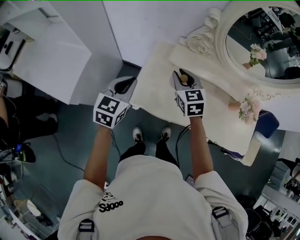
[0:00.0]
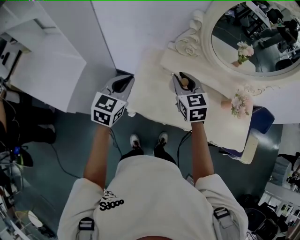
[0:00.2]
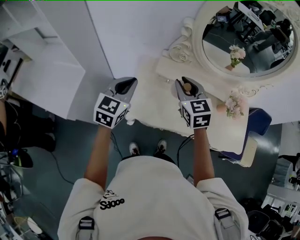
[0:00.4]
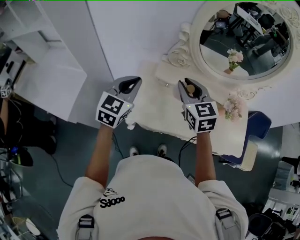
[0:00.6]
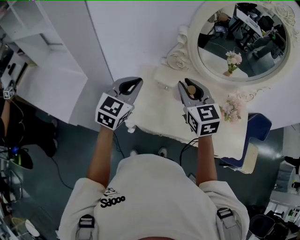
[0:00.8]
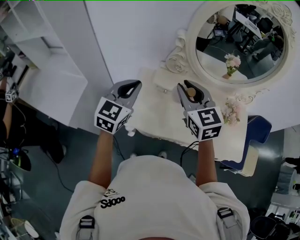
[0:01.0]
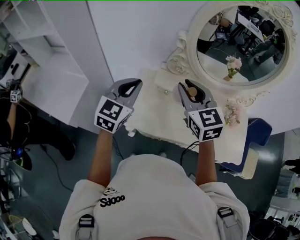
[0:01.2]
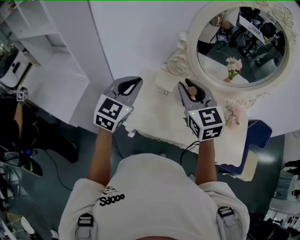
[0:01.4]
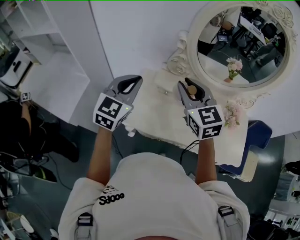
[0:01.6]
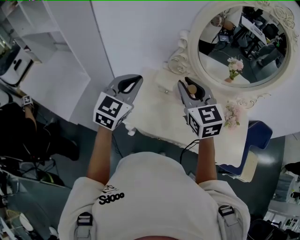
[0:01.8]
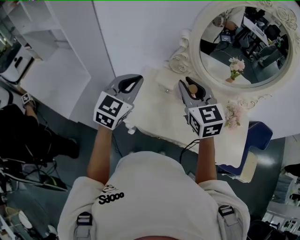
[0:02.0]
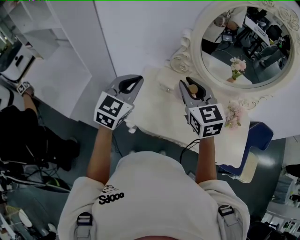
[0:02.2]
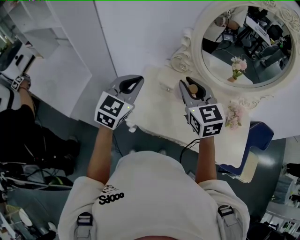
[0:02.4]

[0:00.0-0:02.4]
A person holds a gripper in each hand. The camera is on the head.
0:00.0 to 0:01.2: The right gripper is displaced upward by approximately 20 cm, while the left gripper travels upward and to the right by approximately 15 cm, and swivels approximately 20 degrees.
0:01.2 to 0:02.4: The grippers stay close to where they were, moving slightly.

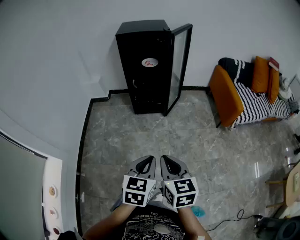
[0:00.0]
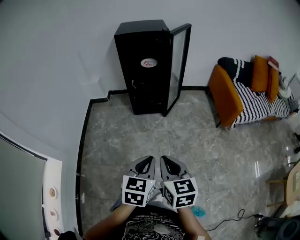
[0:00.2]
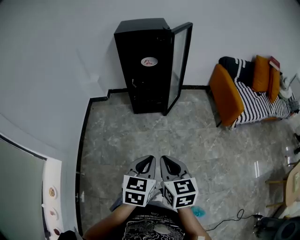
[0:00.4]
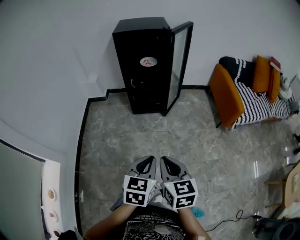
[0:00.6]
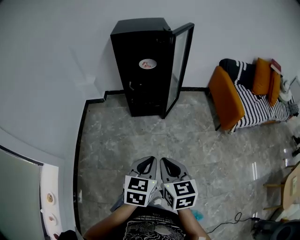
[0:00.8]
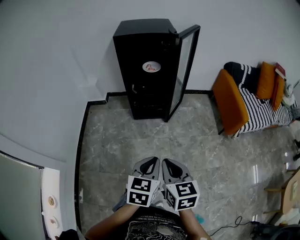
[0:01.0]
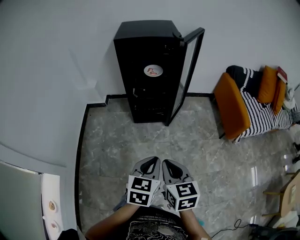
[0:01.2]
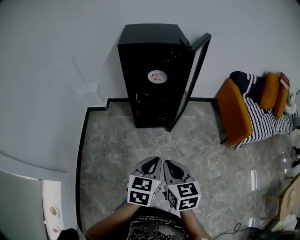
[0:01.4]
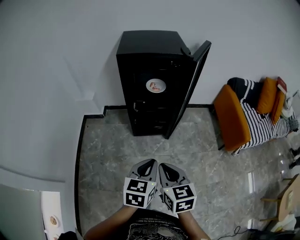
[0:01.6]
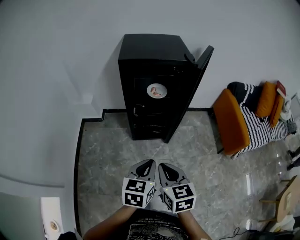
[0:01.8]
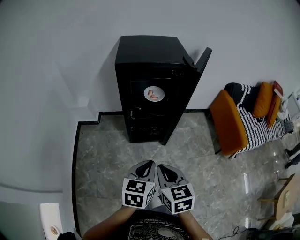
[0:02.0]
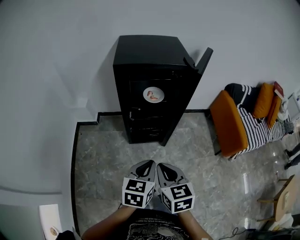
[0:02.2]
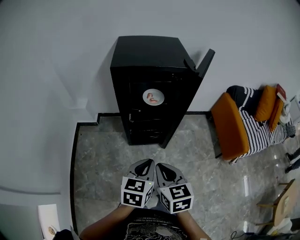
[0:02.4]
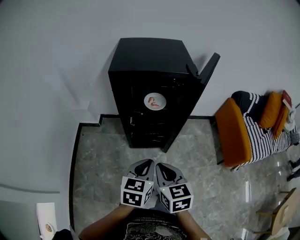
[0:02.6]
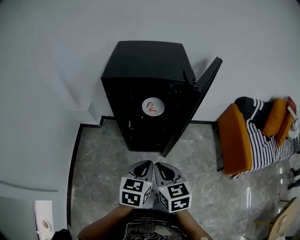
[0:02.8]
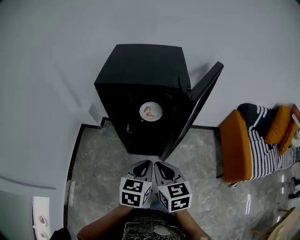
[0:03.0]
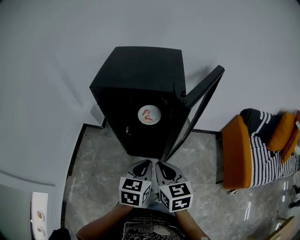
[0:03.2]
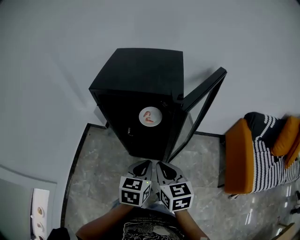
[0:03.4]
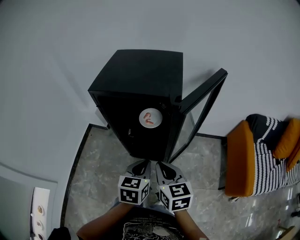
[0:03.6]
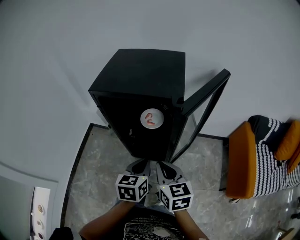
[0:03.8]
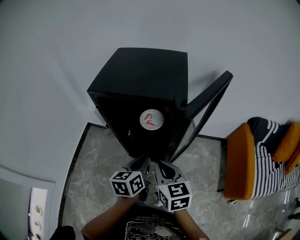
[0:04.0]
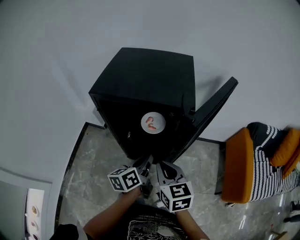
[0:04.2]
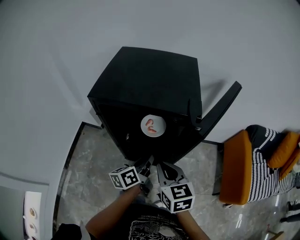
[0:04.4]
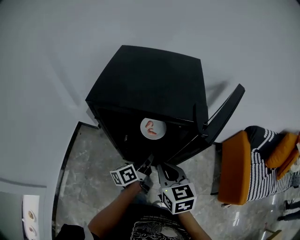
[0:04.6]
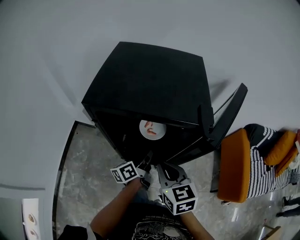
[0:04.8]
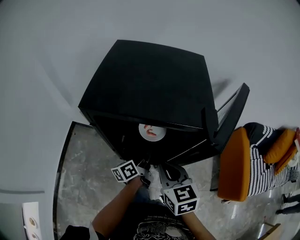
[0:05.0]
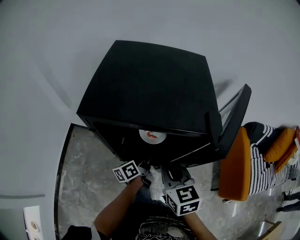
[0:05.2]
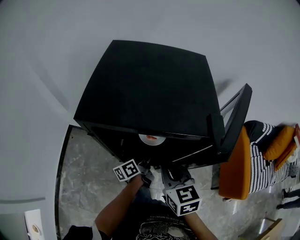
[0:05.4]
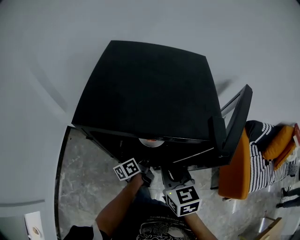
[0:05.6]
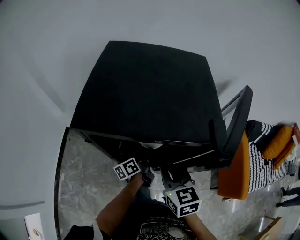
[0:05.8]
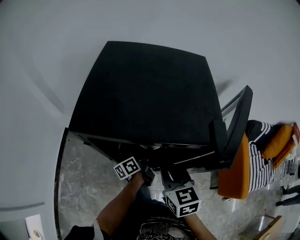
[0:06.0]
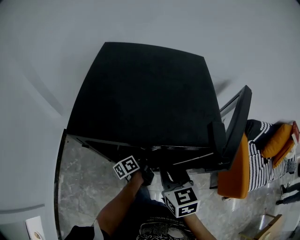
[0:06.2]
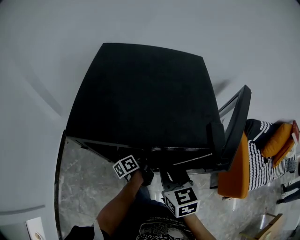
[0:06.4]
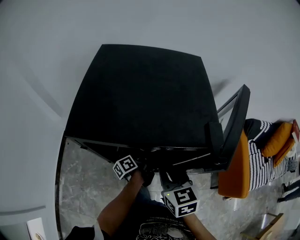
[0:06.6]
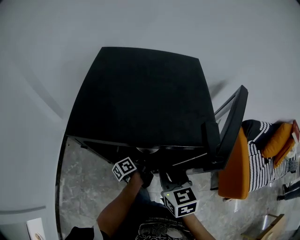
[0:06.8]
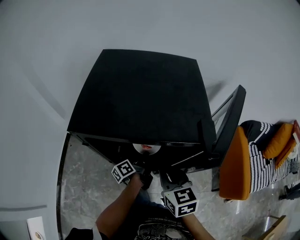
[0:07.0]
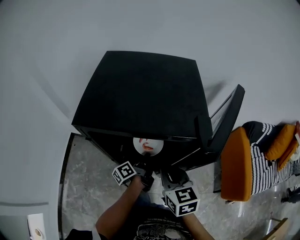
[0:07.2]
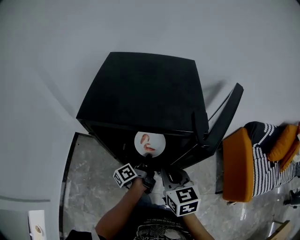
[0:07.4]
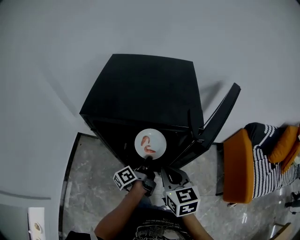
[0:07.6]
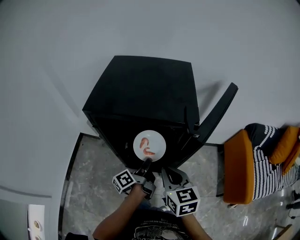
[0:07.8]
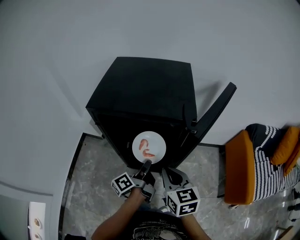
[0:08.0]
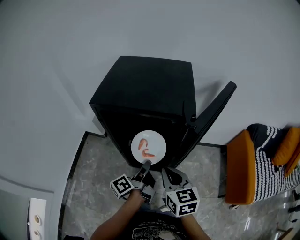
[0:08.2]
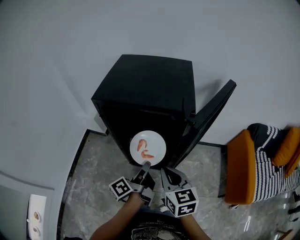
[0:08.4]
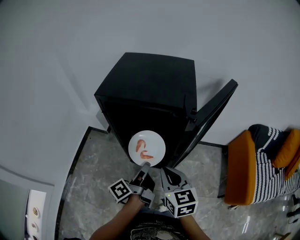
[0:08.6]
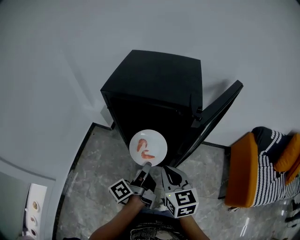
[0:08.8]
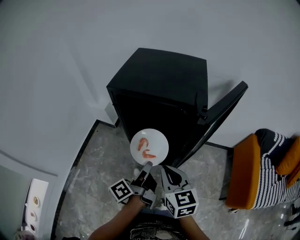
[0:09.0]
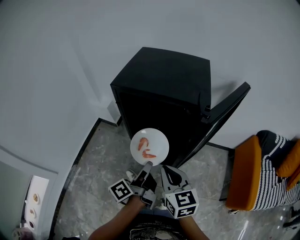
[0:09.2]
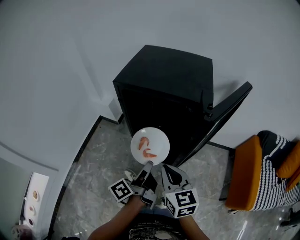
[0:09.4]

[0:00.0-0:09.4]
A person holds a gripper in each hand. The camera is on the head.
0:00.0 to 0:01.6: Both grippers move forward, approximately 30 cm.
0:01.6 to 0:03.2: The two grippers go approximately 30 cm forward and to the right.
0:03.2 to 0:04.8: The right gripper is displaced forward by some 15 cm. The left gripper moves forward and downward, about 25 cm, and rolls counterclockwise, seen from behind, by approximately 50 degrees.
0:04.8 to 0:06.2: The left gripper travels downward and forward by roughly 15 cm, and opens; the right gripper travels forward by roughly 5 cm.
0:06.2 to 0:07.8: The right gripper goes roughly 10 cm backward. The left gripper shifts some 20 cm backward and upward, and closes up.
0:07.8 to 0:09.4: The right gripper moves backward, some 10 cm, while the left gripper travels backward and upward by approximately 15 cm.

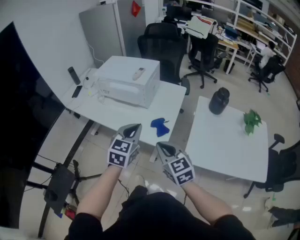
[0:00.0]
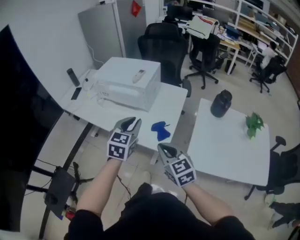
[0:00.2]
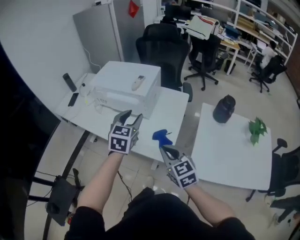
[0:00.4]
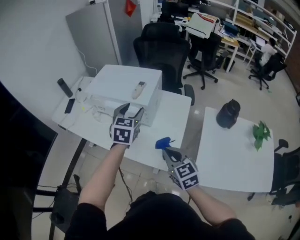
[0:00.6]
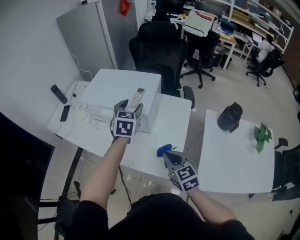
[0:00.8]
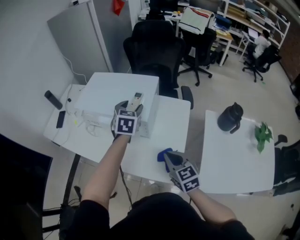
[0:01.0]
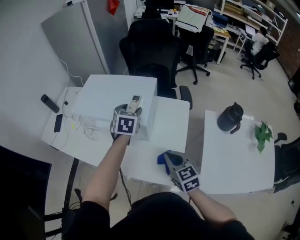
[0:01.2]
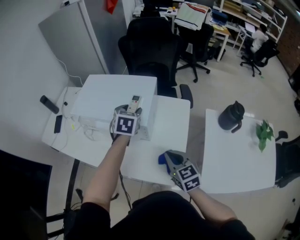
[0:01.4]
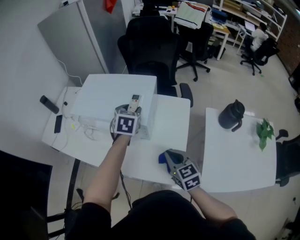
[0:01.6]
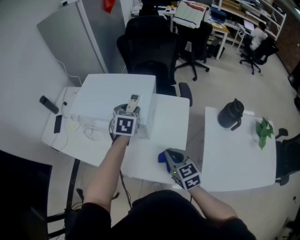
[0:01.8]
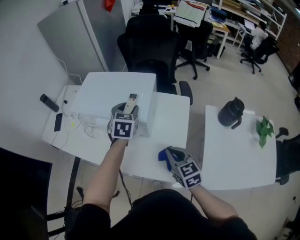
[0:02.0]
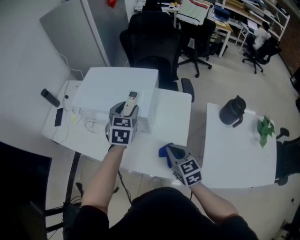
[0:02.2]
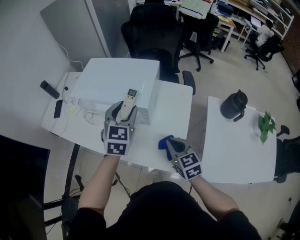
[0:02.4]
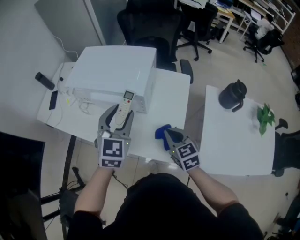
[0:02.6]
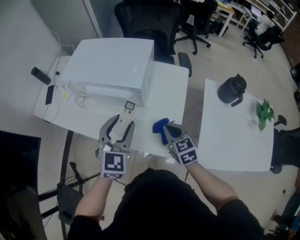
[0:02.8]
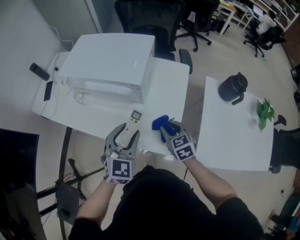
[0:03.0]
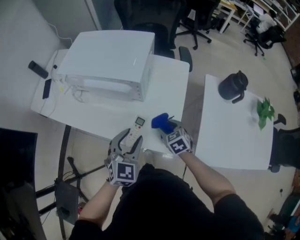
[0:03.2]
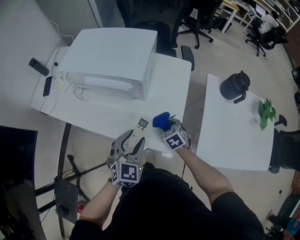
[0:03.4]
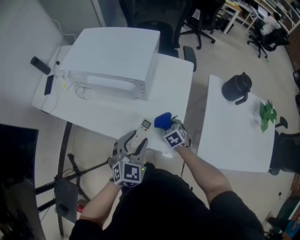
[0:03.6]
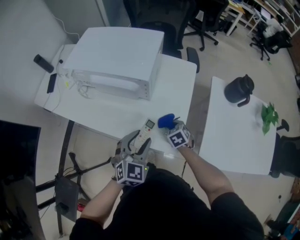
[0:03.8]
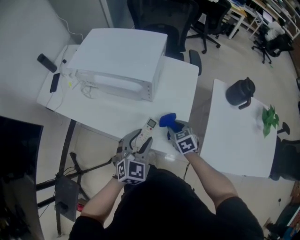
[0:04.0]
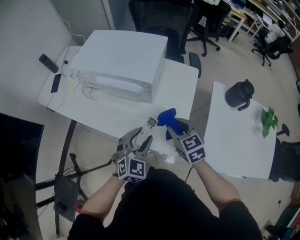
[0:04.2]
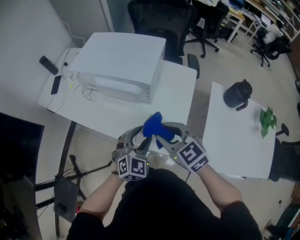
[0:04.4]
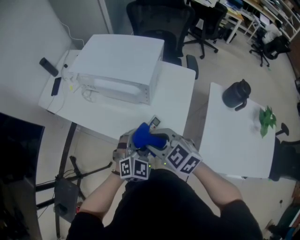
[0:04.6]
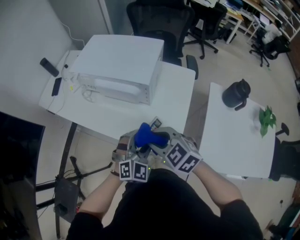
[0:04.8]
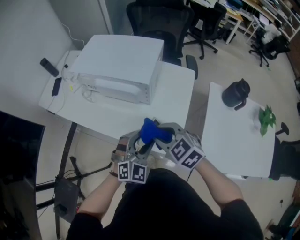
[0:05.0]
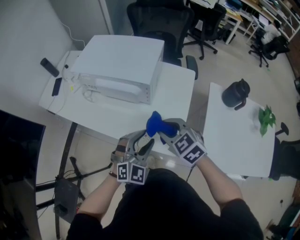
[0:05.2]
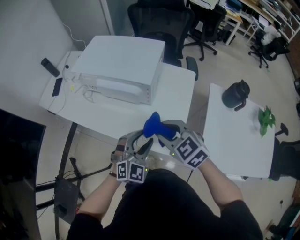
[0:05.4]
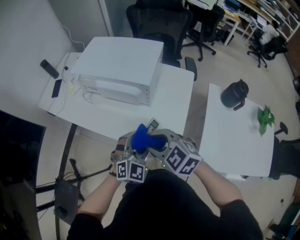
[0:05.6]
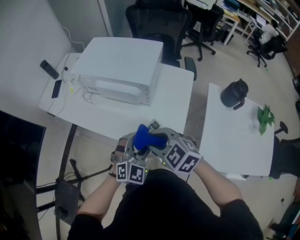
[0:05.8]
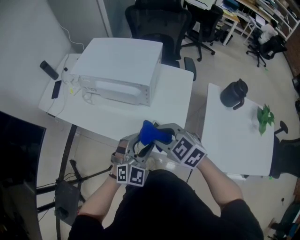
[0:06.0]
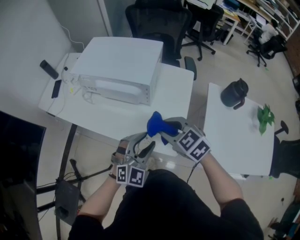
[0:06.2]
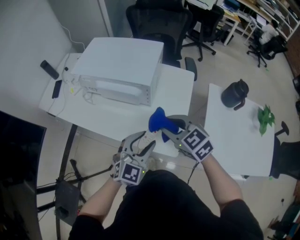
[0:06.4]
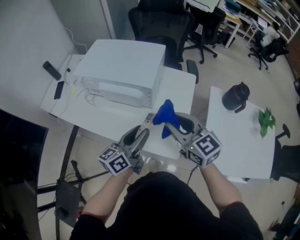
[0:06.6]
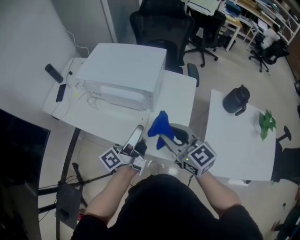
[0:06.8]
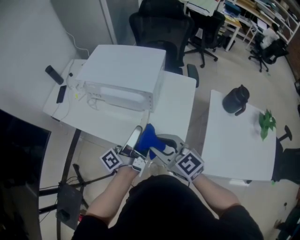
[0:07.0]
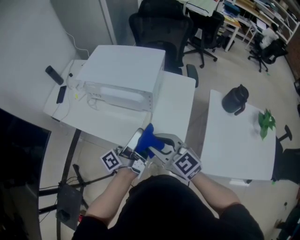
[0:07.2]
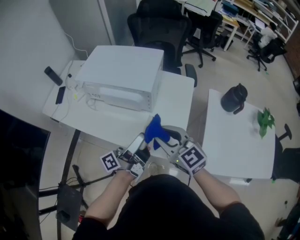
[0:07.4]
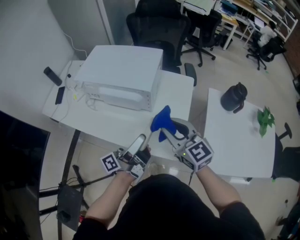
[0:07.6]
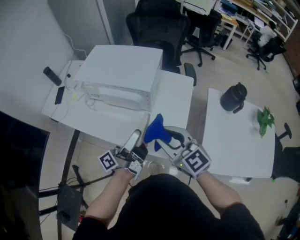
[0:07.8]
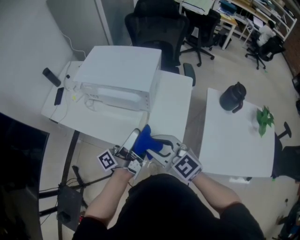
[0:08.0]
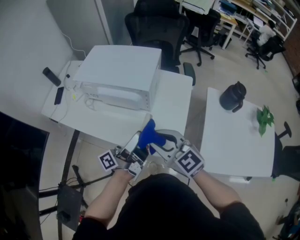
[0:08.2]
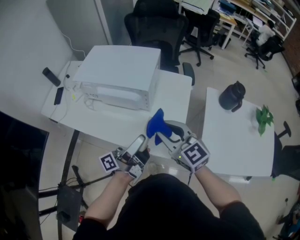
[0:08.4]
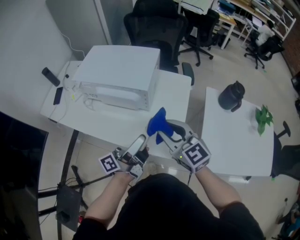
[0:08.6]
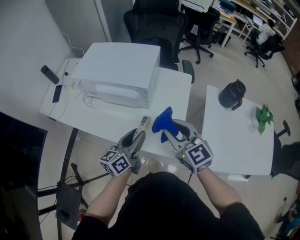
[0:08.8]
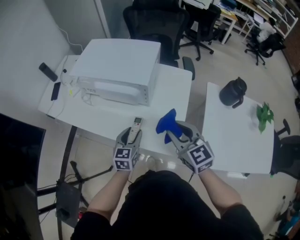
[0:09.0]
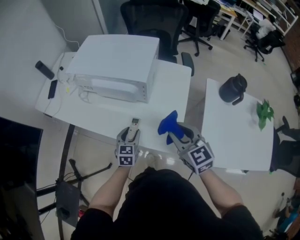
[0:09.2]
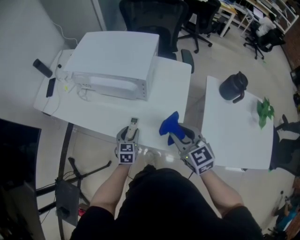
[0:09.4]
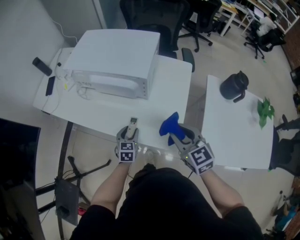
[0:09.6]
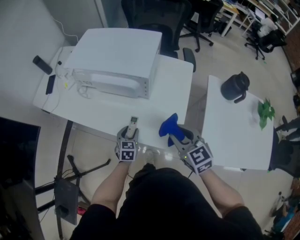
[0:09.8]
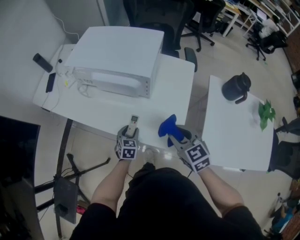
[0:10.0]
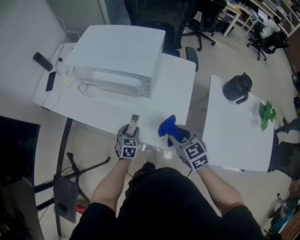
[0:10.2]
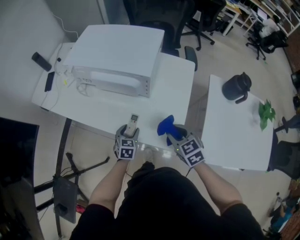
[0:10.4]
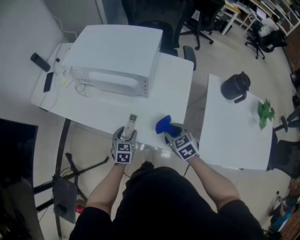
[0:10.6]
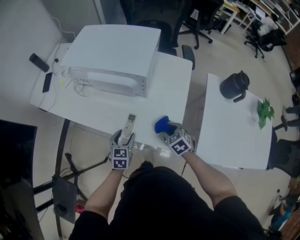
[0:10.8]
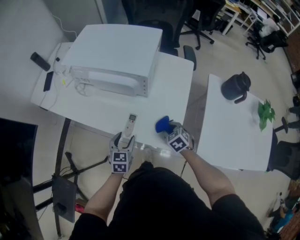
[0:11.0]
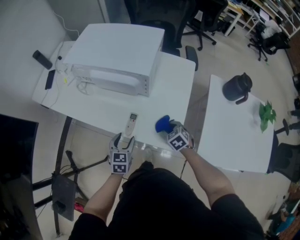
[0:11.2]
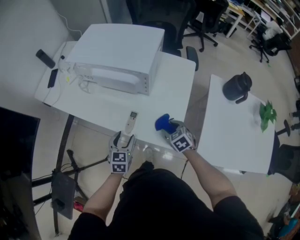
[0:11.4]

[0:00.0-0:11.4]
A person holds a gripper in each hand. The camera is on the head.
0:00.0 to 0:01.4: The right gripper is displaced forward by some 25 cm; the left gripper travels forward by approximately 40 cm, and opens its fingers.
0:01.4 to 0:02.8: The left gripper goes approximately 20 cm backward, and swivels approximately 20 degrees, while the right gripper heads downward, covering approximately 5 cm.
0:02.8 to 0:04.2: The left gripper travels downward and backward by about 10 cm. Meanwhile the right gripper travels downward and back again, approximately 15 cm each way, and opens up.
0:04.2 to 0:05.6: The right gripper swings left and right, roughly 10 cm each way, with 2 reversals, and rotates about 30 degrees.
0:05.6 to 0:07.2: The left gripper travels upward by some 5 cm, and twists about 110 degrees counterclockwise, seen from behind. The right gripper travels to the right and back again, some 10 cm each way, and rotates some 30 degrees.
0:07.2 to 0:08.6: The right gripper moves left and right over roughly 5 cm, changing direction 2 times.
0:08.6 to 0:10.0: The right gripper shifts about 10 cm downward, and turns by roughly 20 degrees; the left gripper travels downward by roughly 30 cm, and angles its fingers downward, by approximately 70 degrees.
0:10.0 to 0:11.4: The left gripper shifts about 10 cm upward and backward. The right gripper goes approximately 15 cm downward, and rotates some 20 degrees.
